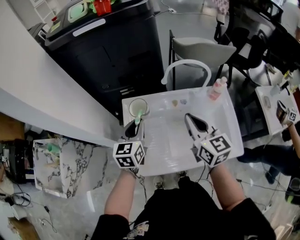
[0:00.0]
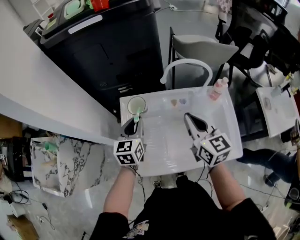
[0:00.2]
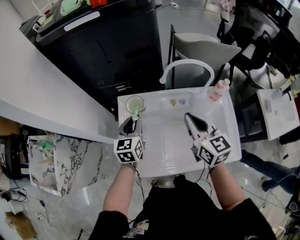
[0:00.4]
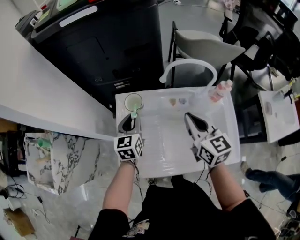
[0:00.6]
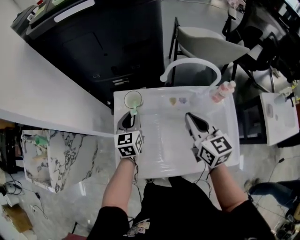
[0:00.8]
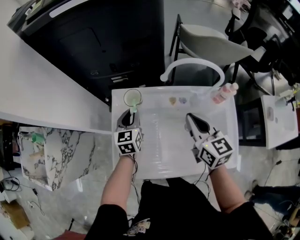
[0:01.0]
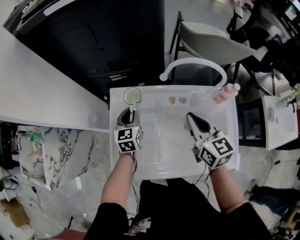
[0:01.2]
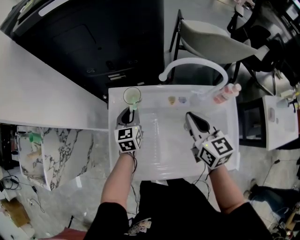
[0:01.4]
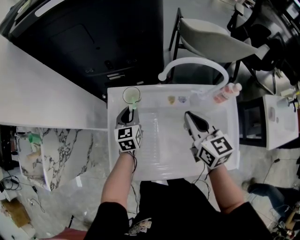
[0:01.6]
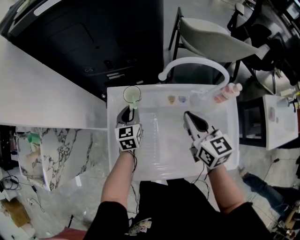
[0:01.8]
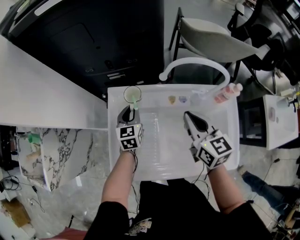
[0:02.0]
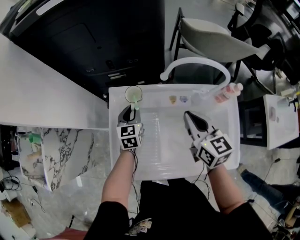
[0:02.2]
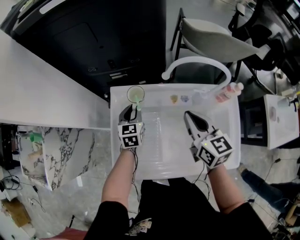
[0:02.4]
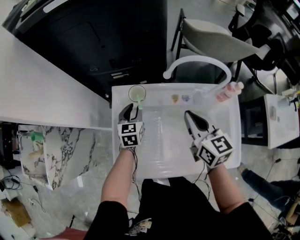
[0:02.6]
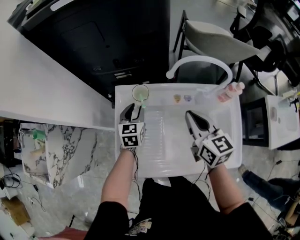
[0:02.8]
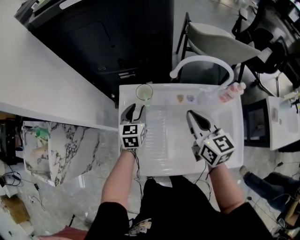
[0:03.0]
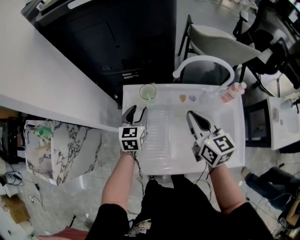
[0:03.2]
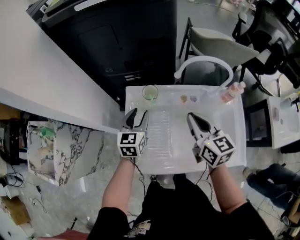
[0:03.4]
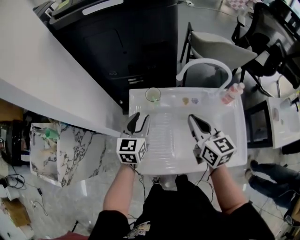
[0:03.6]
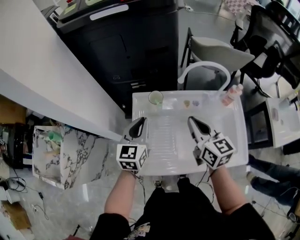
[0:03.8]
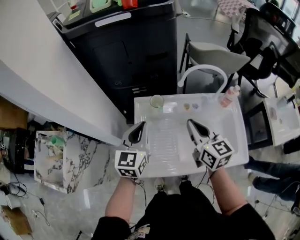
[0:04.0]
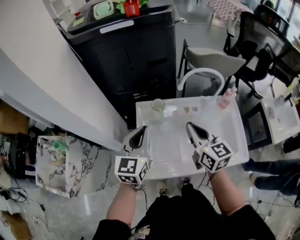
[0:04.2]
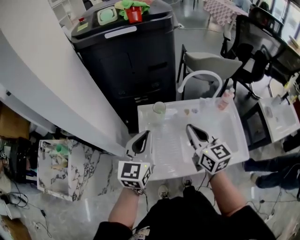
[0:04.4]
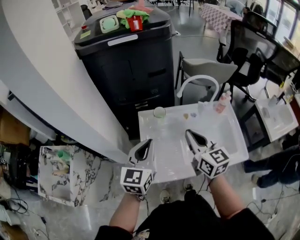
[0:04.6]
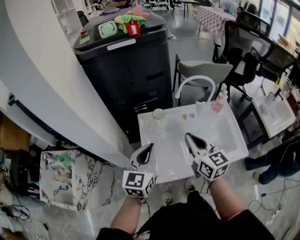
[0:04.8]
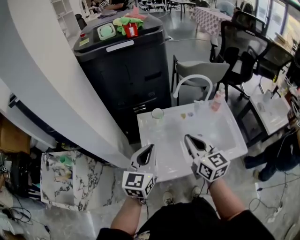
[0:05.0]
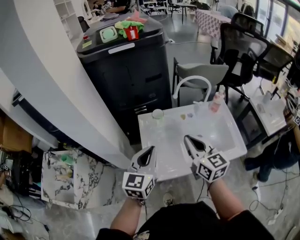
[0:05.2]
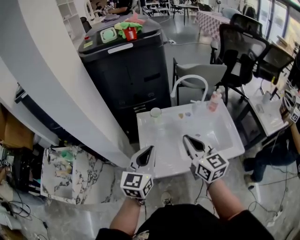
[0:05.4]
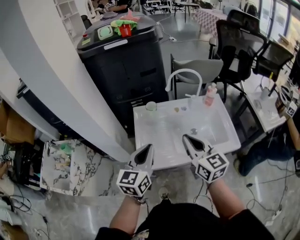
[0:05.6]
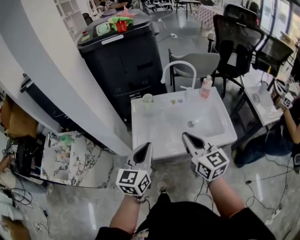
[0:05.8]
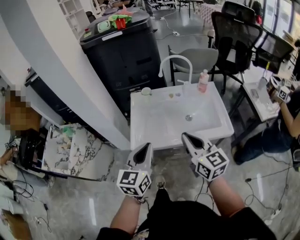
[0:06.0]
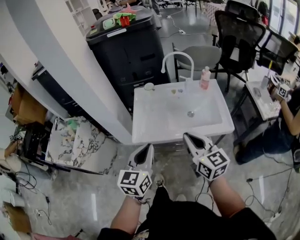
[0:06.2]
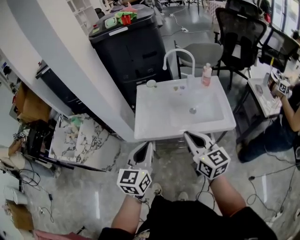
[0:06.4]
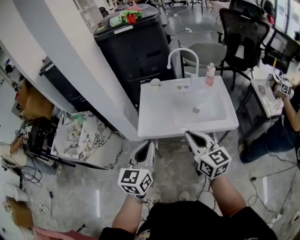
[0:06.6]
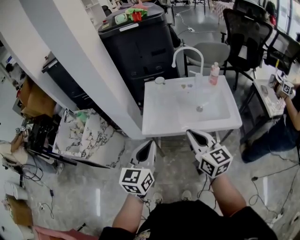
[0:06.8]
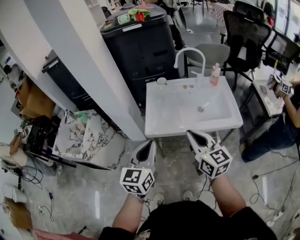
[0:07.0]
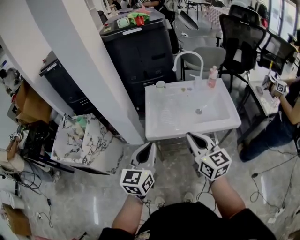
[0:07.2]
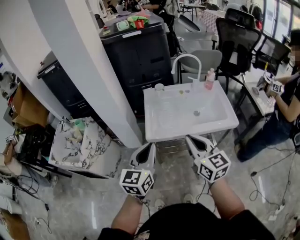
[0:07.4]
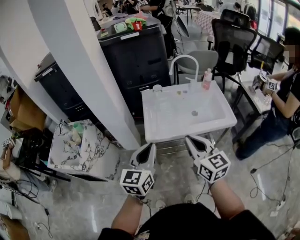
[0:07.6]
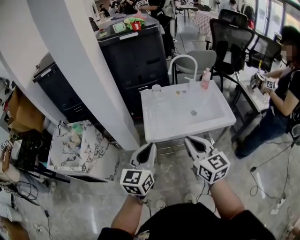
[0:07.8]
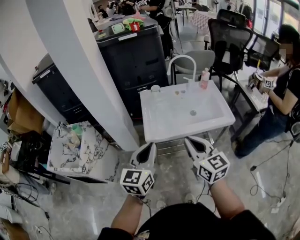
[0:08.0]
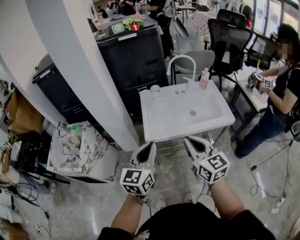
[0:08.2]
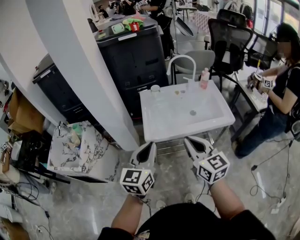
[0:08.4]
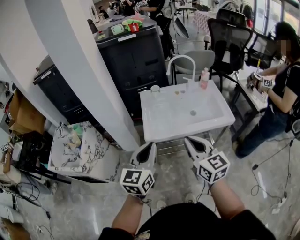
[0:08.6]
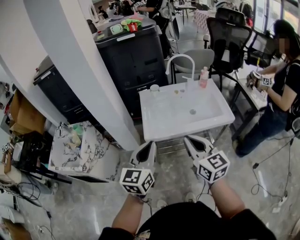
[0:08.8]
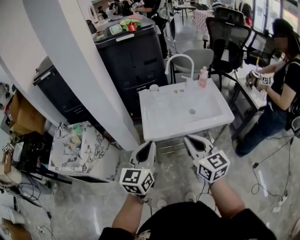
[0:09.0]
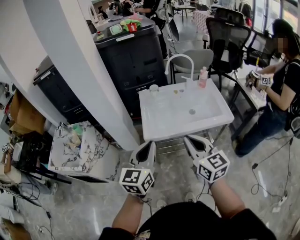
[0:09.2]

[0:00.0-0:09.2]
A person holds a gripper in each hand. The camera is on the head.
0:00.0 to 0:01.6: The left gripper heads downward and forward, covering roughly 20 cm, while the right gripper shifts approximately 15 cm downward and forward.
0:01.6 to 0:03.0: The left gripper opens up.
0:03.0 to 0:04.6: The left gripper goes about 30 cm upward and backward, rotates roughly 20 degrees, and closes its fingers. Meanwhile the right gripper goes approximately 20 cm backward, upward and to the left.
0:04.6 to 0:06.2: The grippers both shift backward by some 30 cm.
0:06.2 to 0:07.6: The left gripper heads to the left, covering approximately 10 cm. Meanwhile the right gripper travels to the left and backward by roughly 15 cm.
0:07.6 to 0:09.2: The grippers make only small movements.

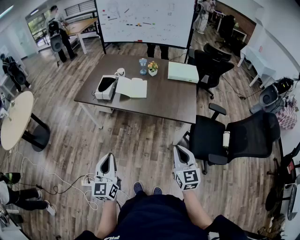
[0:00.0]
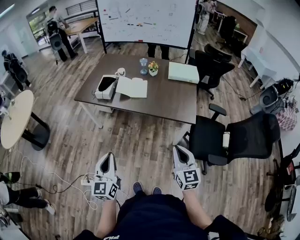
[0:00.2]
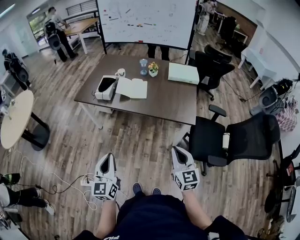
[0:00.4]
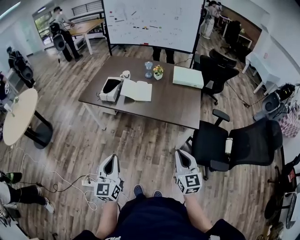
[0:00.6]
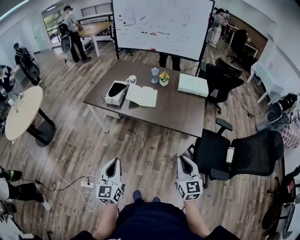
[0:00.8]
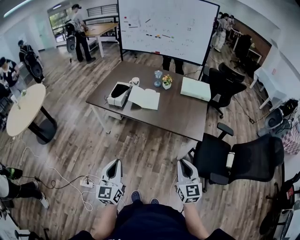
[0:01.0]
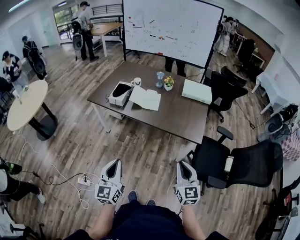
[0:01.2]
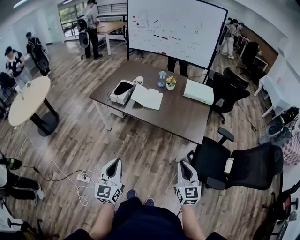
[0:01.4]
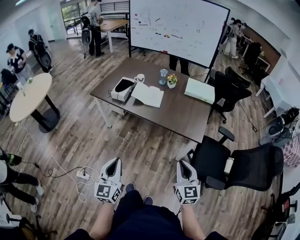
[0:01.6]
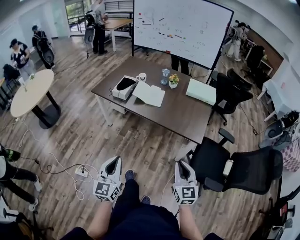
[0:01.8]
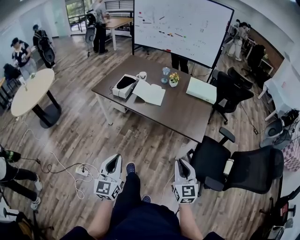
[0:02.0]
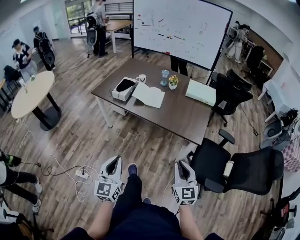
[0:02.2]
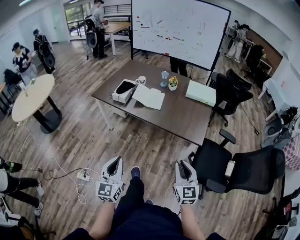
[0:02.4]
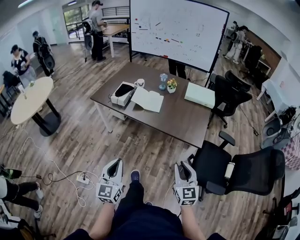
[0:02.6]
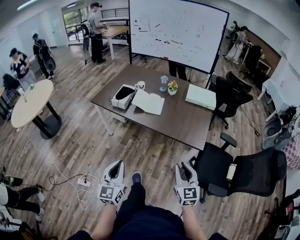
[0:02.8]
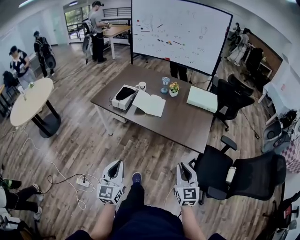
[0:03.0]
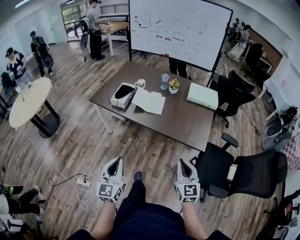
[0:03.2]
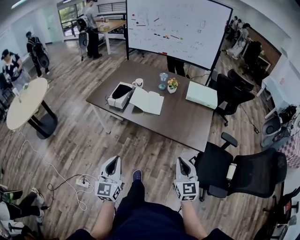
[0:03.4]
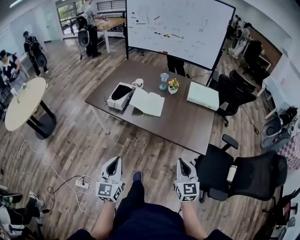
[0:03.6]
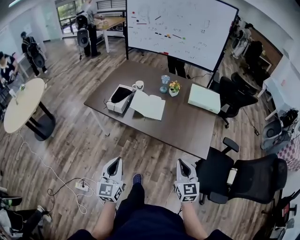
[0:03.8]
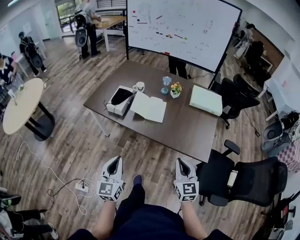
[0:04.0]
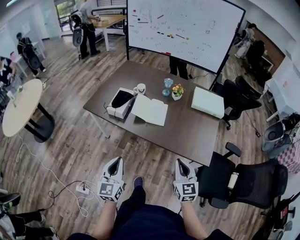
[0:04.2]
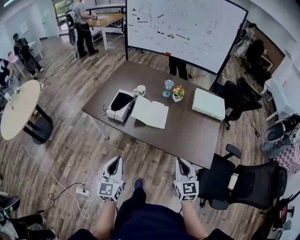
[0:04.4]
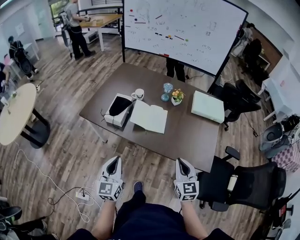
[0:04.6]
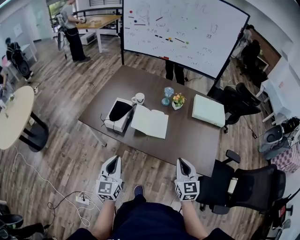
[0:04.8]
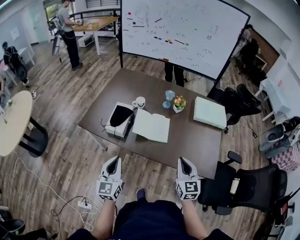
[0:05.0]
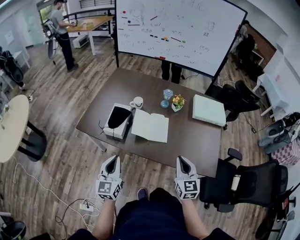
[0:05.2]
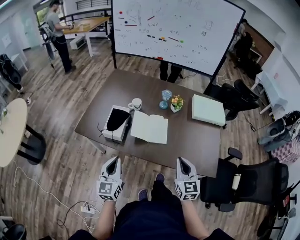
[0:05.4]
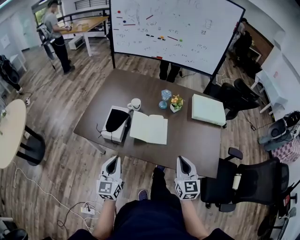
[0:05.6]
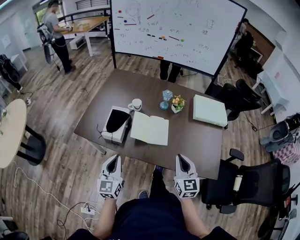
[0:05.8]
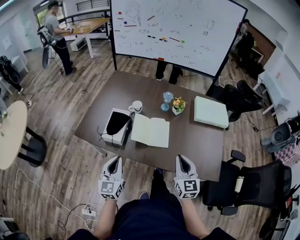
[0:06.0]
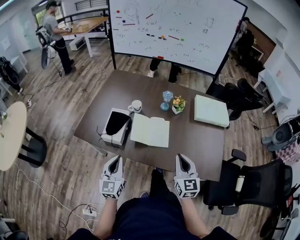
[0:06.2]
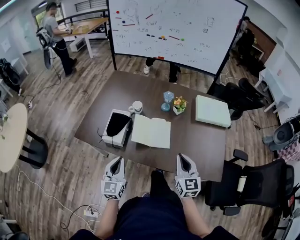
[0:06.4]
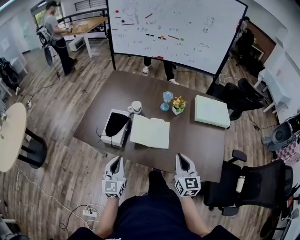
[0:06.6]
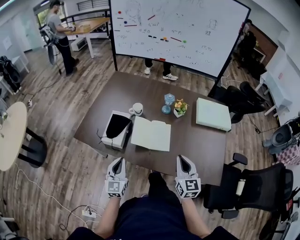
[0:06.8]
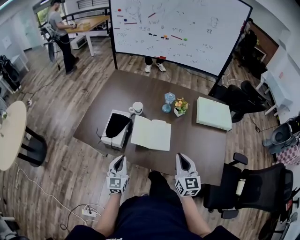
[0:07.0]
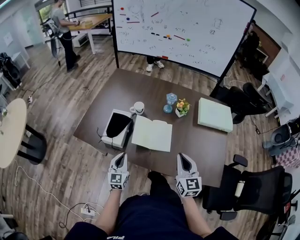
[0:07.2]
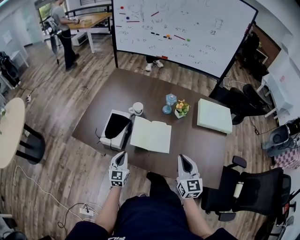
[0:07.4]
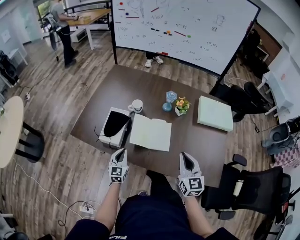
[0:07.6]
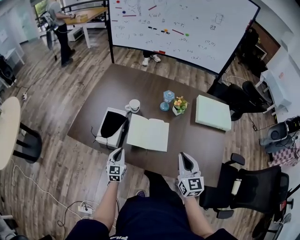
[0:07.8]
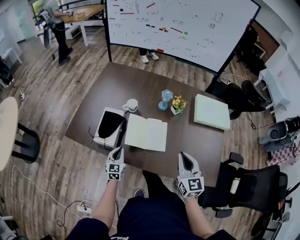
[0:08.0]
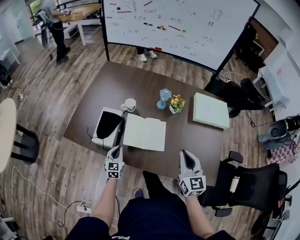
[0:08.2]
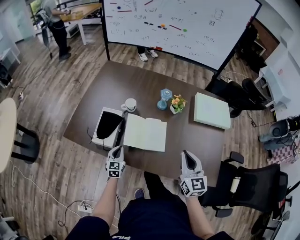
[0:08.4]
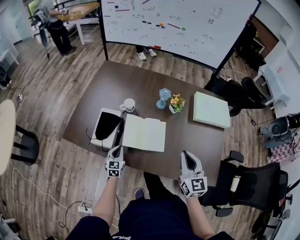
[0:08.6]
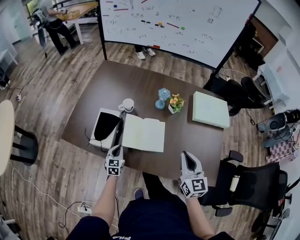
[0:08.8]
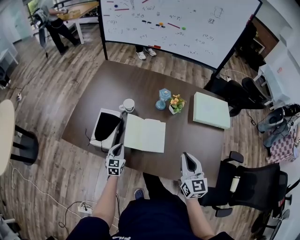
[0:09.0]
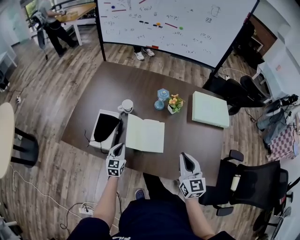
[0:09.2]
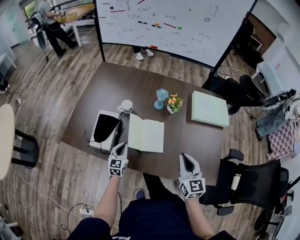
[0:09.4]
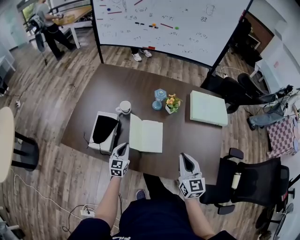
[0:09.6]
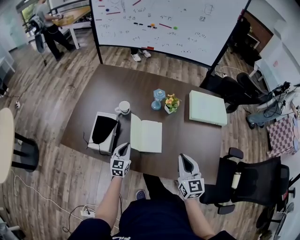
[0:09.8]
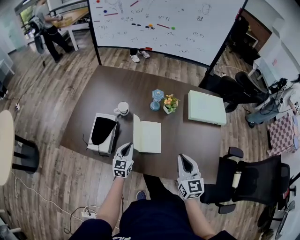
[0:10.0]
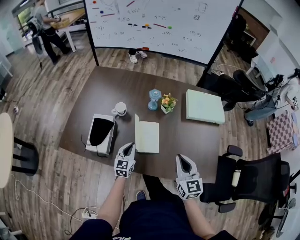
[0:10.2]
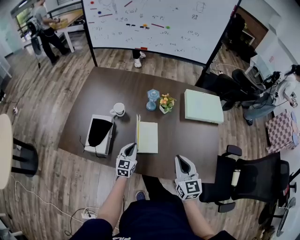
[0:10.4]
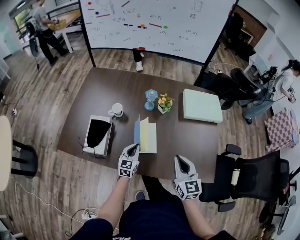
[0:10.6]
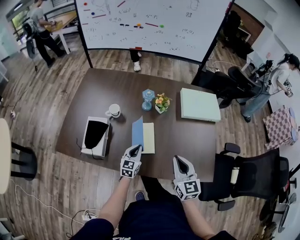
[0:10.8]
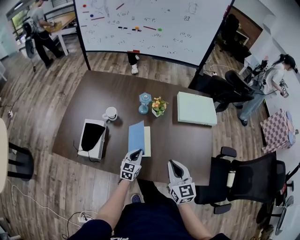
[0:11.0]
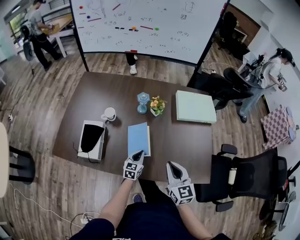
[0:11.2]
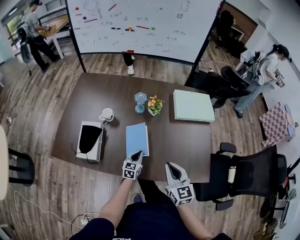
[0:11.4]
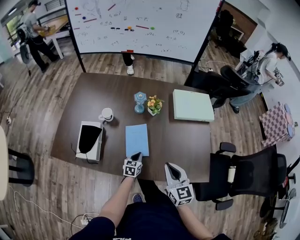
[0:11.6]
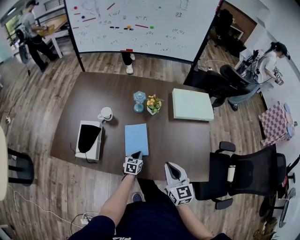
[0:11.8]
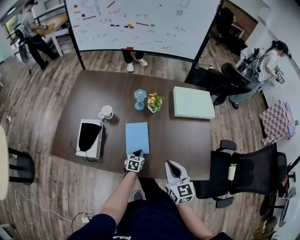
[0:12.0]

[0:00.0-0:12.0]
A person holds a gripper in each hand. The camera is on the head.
0:00.0 to 0:01.6: The left gripper shifts by approximately 5 cm.
0:01.6 to 0:03.0: The grippers both shift forward by approximately 5 cm.
0:03.0 to 0:04.4: The grippers both shift forward by some 25 cm.
0:04.4 to 0:06.0: Both grippers move forward, approximately 20 cm.
0:06.0 to 0:07.6: The right gripper moves forward, roughly 5 cm. Meanwhile the left gripper travels downward and forward by some 20 cm.
0:07.6 to 0:09.0: The left gripper travels forward and downward by about 10 cm.
0:09.0 to 0:10.4: The left gripper shifts about 10 cm to the right.
0:10.4 to 0:12.0: The left gripper shifts approximately 15 cm downward and to the right, and swivels roughly 30 degrees.

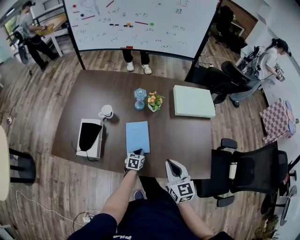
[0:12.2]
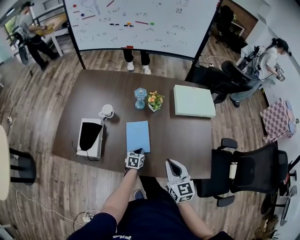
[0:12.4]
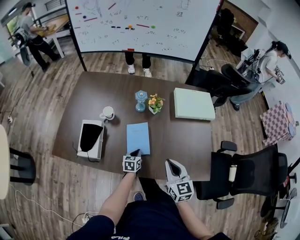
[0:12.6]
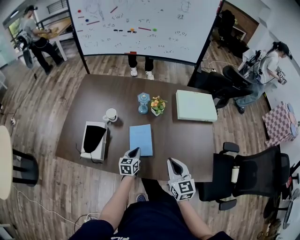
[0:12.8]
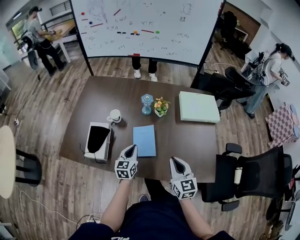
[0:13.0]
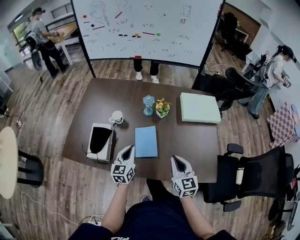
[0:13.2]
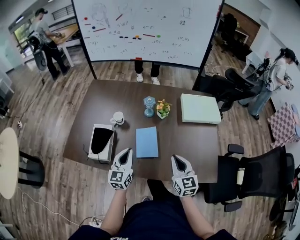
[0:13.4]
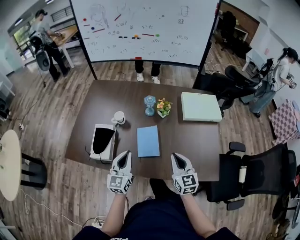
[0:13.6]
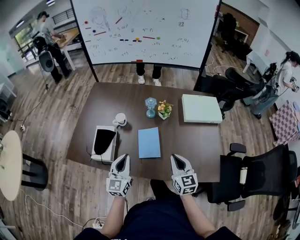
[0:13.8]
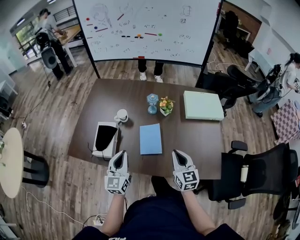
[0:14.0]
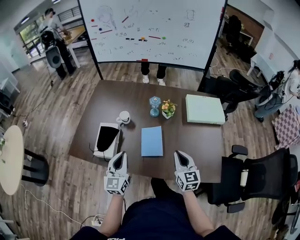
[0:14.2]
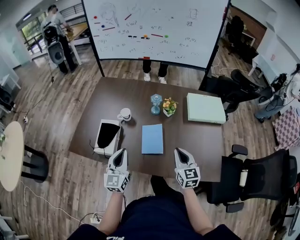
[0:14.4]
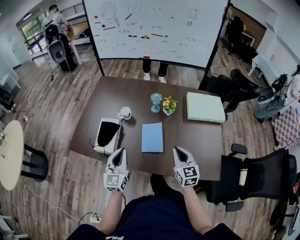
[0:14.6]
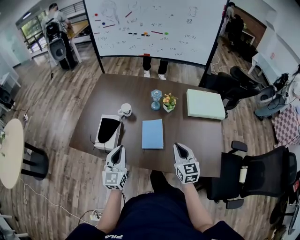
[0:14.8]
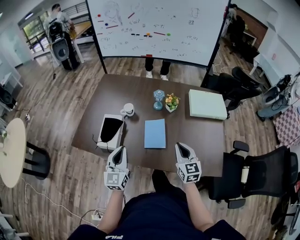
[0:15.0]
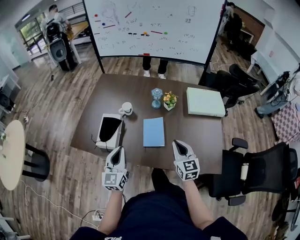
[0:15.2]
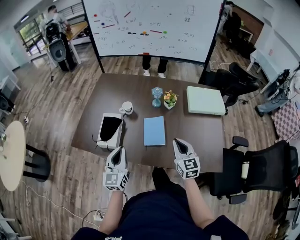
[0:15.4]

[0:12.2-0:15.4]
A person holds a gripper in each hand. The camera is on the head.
0:12.2 to 0:13.8: The left gripper moves upward and to the left, some 30 cm, and points its fingers about 40 degrees further upward.
0:13.8 to 0:15.4: The left gripper moves to the left, about 5 cm.
